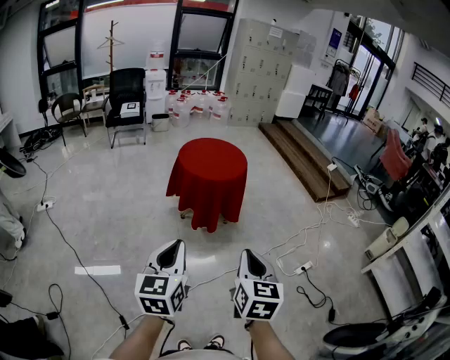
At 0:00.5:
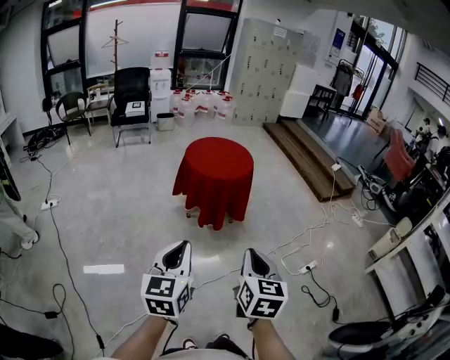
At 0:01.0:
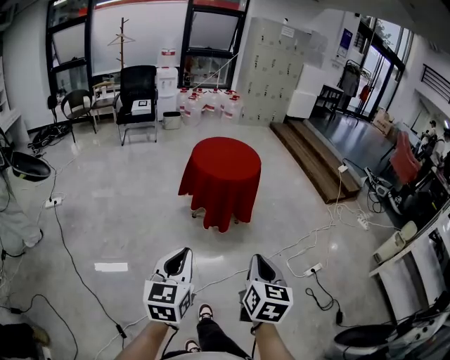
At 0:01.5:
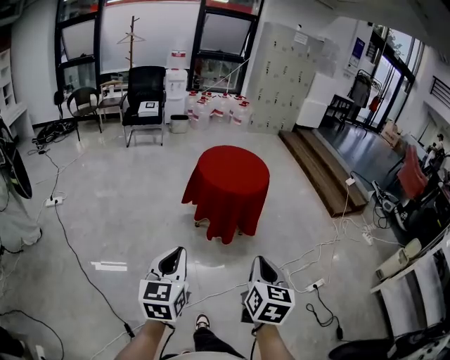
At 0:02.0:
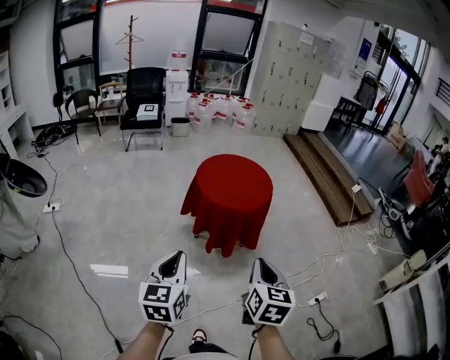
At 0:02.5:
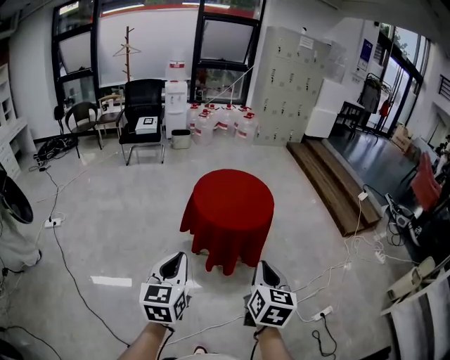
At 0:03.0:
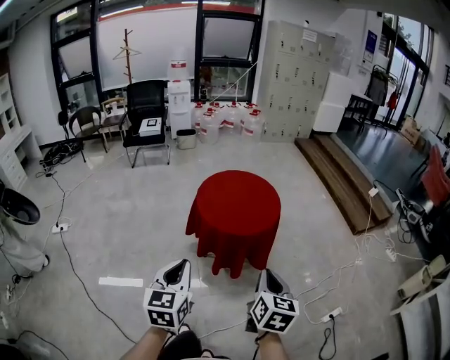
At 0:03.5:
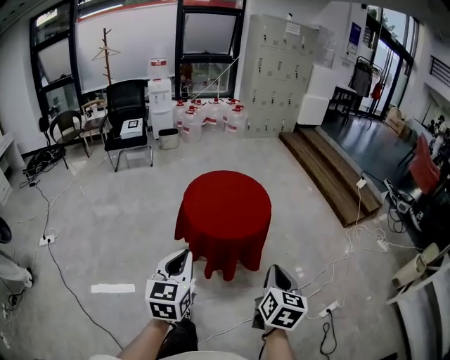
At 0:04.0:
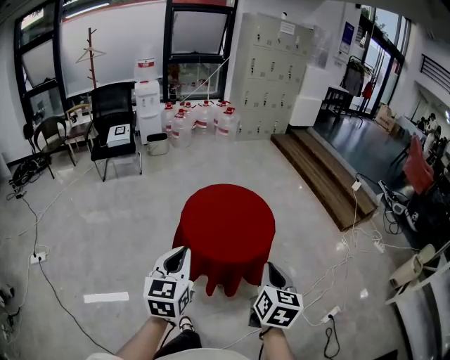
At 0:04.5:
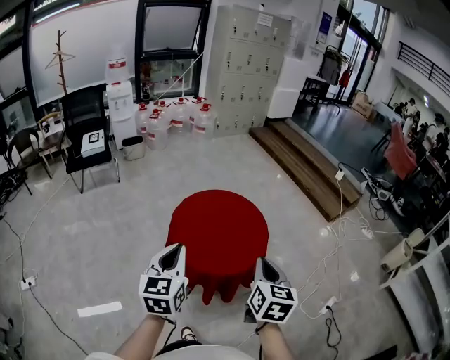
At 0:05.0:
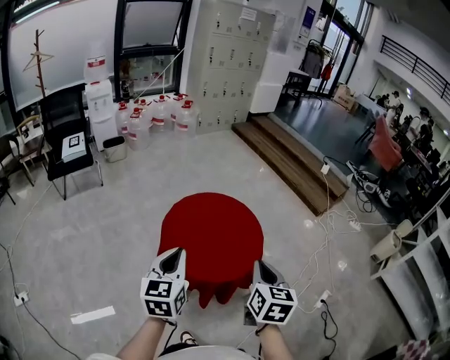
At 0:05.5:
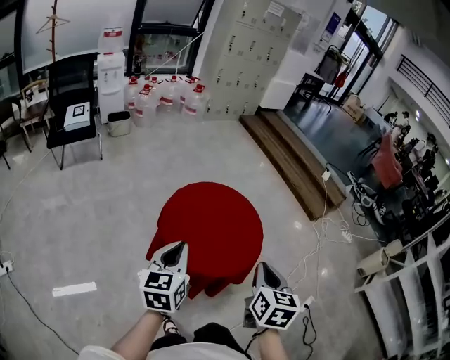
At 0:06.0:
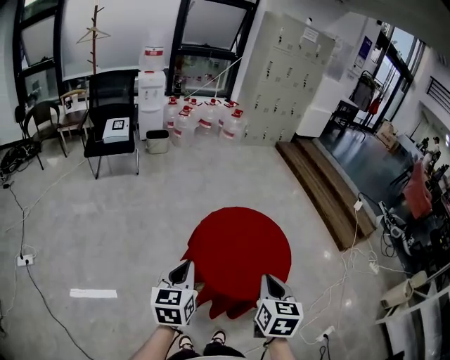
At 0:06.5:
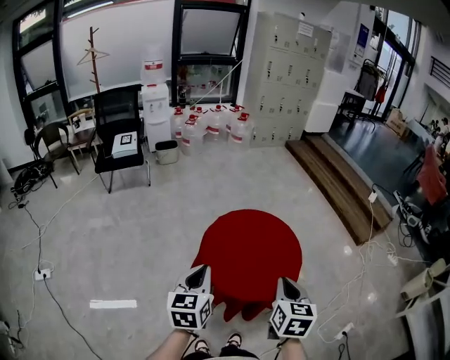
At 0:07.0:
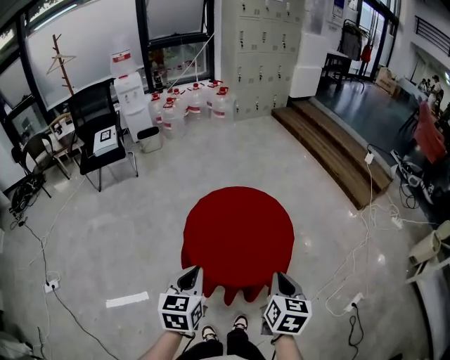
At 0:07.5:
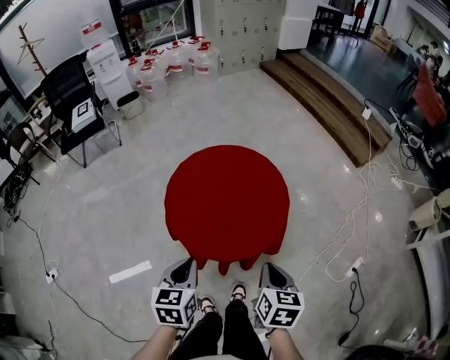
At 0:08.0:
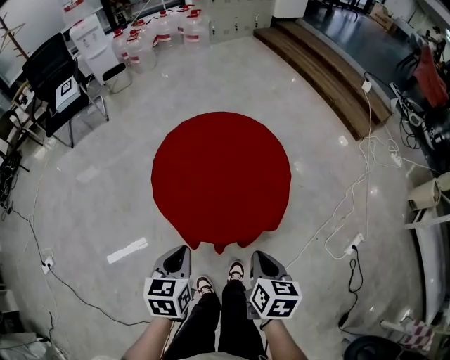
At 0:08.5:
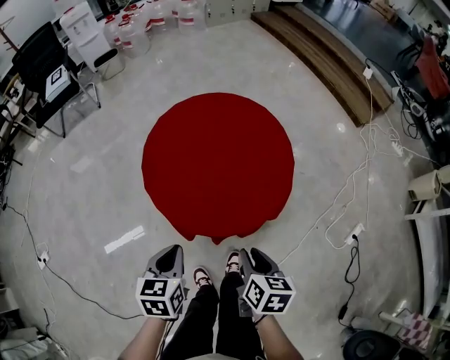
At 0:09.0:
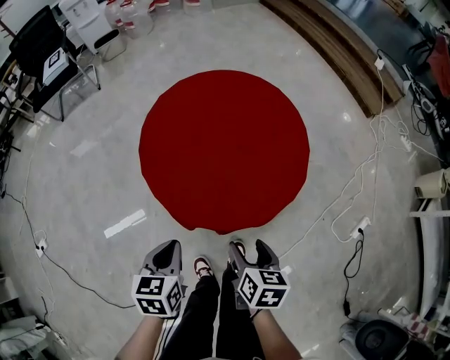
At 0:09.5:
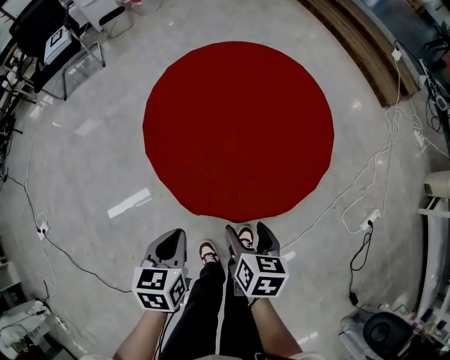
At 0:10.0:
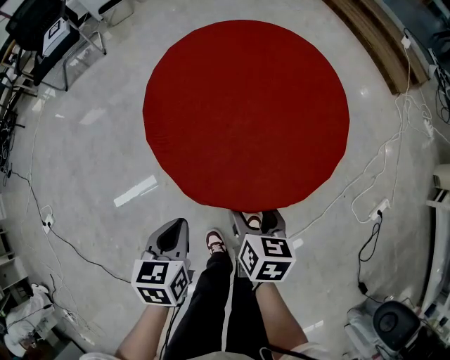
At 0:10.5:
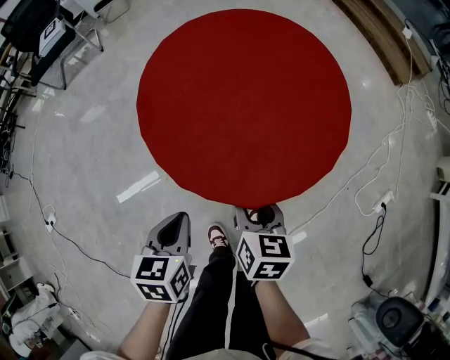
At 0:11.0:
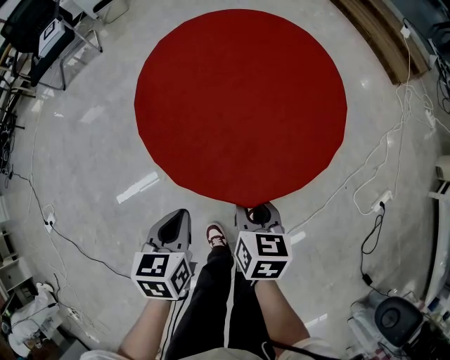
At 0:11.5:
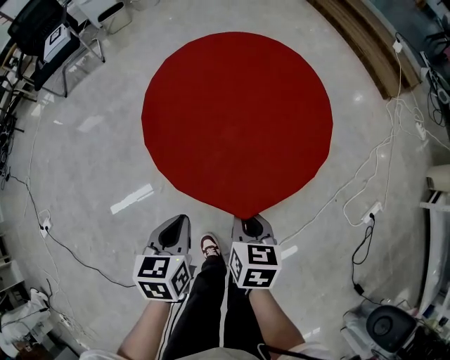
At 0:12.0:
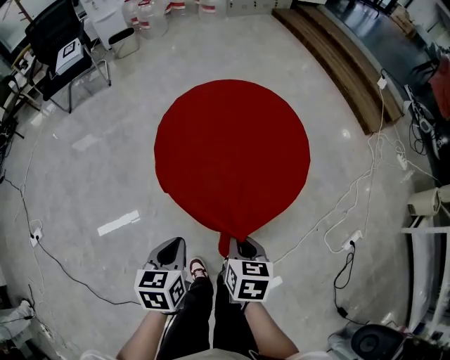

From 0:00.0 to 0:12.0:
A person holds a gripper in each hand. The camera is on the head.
From 0:00.0 to 0:02.0: The right gripper goes approximately 20 cm forward, while the left gripper travels forward and to the left by some 15 cm.
From 0:02.0 to 0:04.0: The grippers both shift forward by about 30 cm.
From 0:04.0 to 0:06.0: The left gripper heads to the left, forward and downward, covering roughly 20 cm. Meanwhile the right gripper travels to the left and forward by roughly 15 cm.
From 0:06.0 to 0:08.0: The two grippers go roughly 20 cm downward and to the right. The right gripper turns by some 30 degrees, while the left gripper turns by about 30 degrees.
From 0:08.0 to 0:10.0: The left gripper travels downward by about 10 cm; the right gripper heads downward and to the left, covering approximately 15 cm, and opens its fingers.
From 0:10.0 to 0:12.0: The two grippers go roughly 5 cm upward. The right gripper closes up.

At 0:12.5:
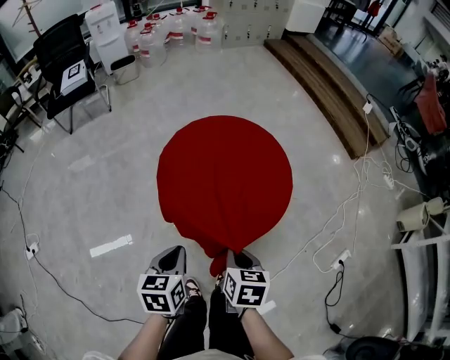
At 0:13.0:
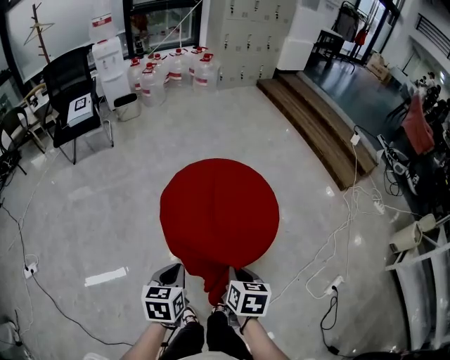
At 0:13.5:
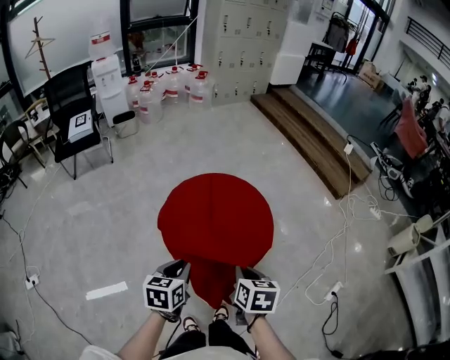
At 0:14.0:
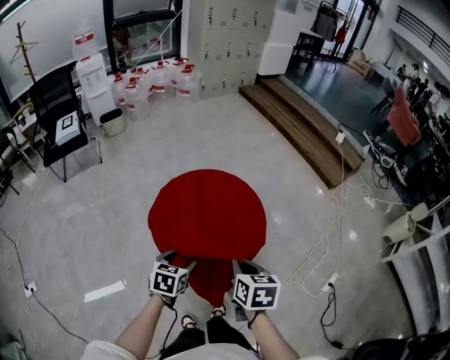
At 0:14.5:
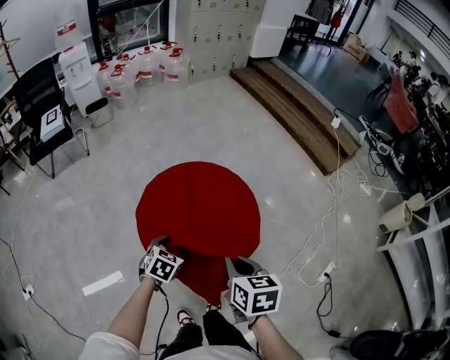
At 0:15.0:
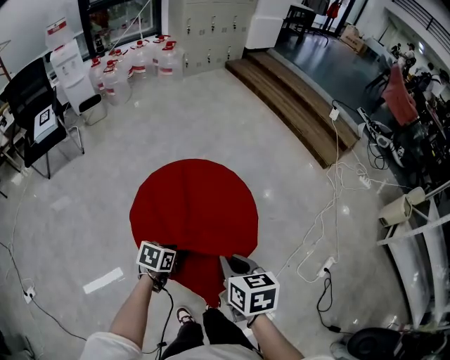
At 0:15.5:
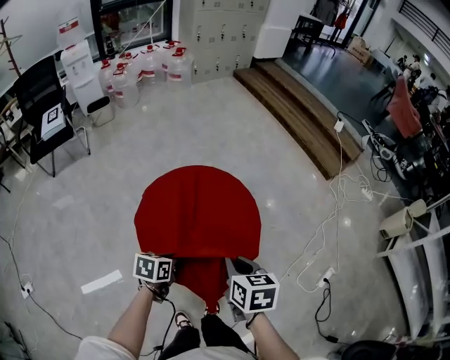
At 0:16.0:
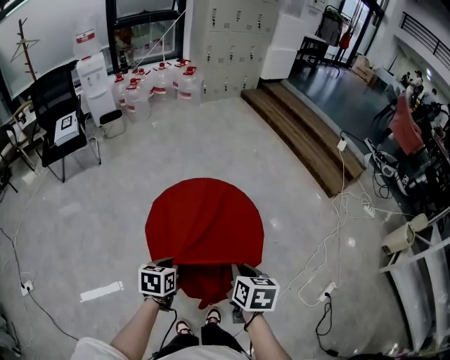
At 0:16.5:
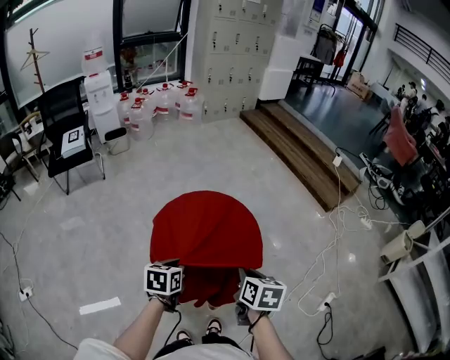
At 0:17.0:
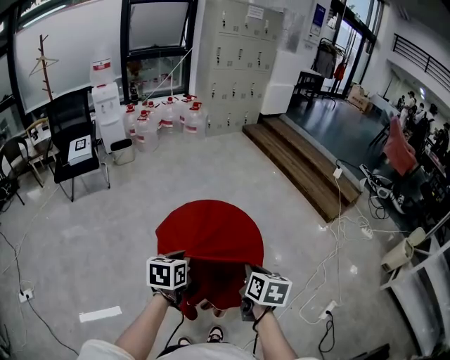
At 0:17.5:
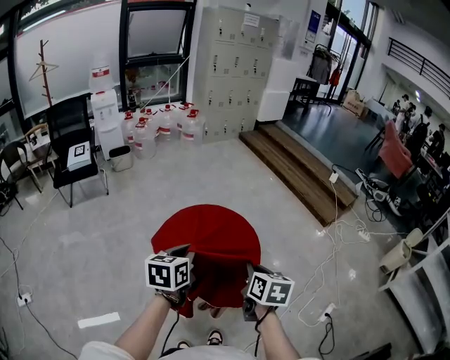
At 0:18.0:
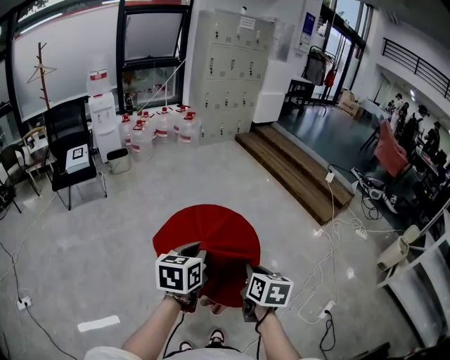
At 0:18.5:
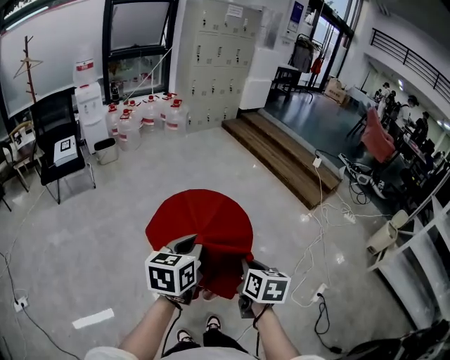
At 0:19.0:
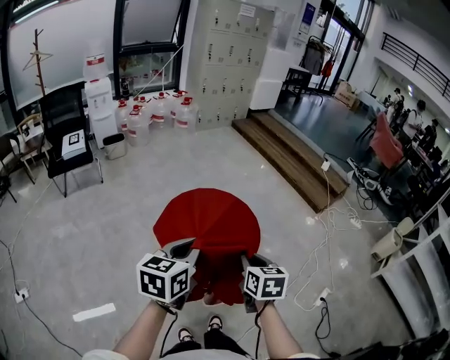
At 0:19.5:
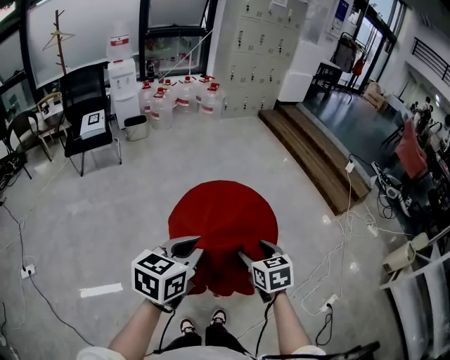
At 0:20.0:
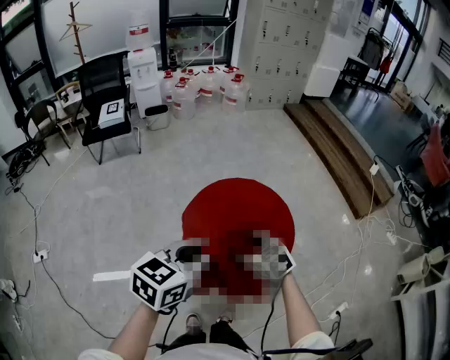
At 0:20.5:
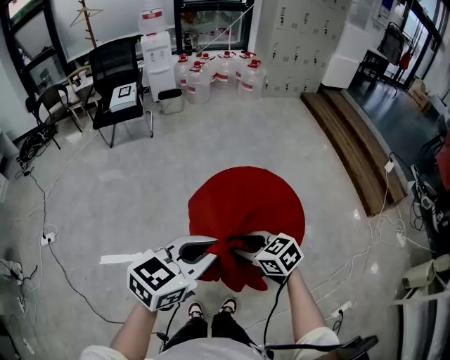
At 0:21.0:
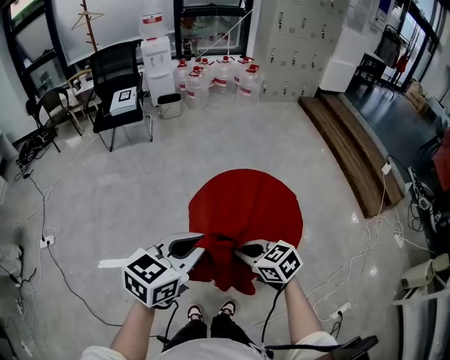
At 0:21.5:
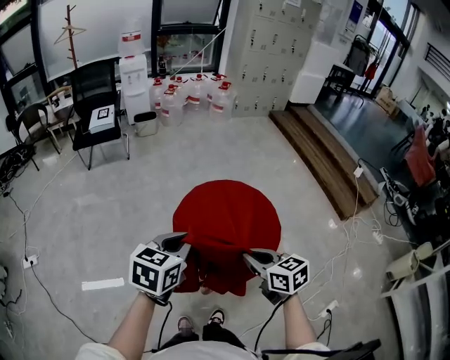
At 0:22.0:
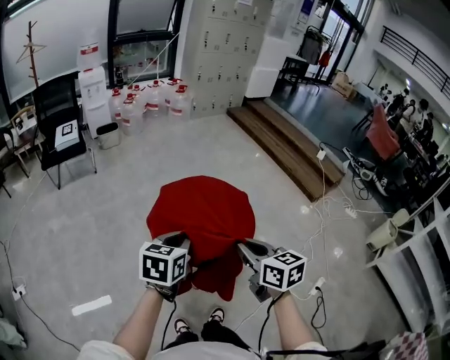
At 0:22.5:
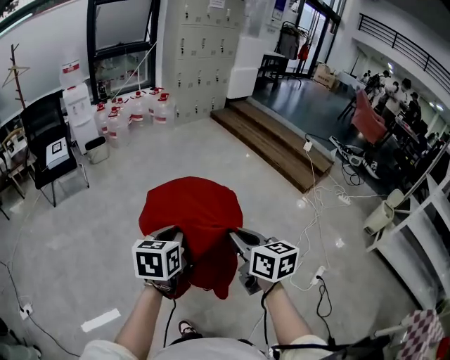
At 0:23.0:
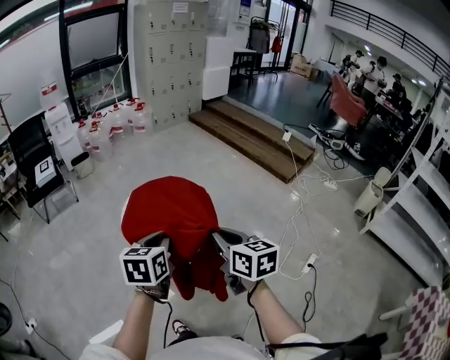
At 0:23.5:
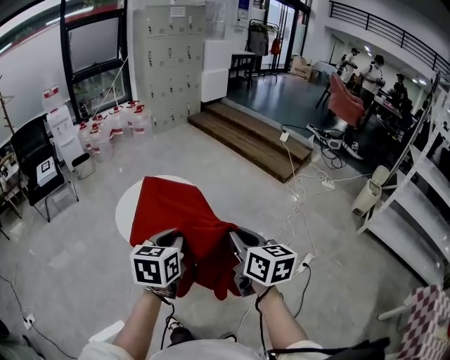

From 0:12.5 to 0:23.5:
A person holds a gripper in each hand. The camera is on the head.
From 0:12.5 to 0:14.5: The right gripper moves upward and forward, some 15 cm. The left gripper is displaced forward and downward by roughly 15 cm, swivels about 40 degrees, and opens up.
From 0:14.5 to 0:16.0: The left gripper goes approximately 5 cm upward, rotates approximately 30 degrees, and closes its fingers.
From 0:16.0 to 0:18.0: The right gripper moves upward, approximately 10 cm; the left gripper goes about 20 cm upward, and swivels some 20 degrees.
From 0:18.0 to 0:20.0: The left gripper shifts by roughly 5 cm. The right gripper moves to the left and downward, about 15 cm, changes its angle by about 60 degrees, and opens up.
From 0:20.0 to 0:21.5: The left gripper changes place by some 5 cm. Meanwhile the right gripper is displaced upward and backward by about 10 cm, turns by approximately 20 degrees, and closes up.
From 0:21.5 to 0:23.5: The right gripper is displaced to the right, backward and upward by some 30 cm, and swivels some 40 degrees; the left gripper heads to the right and backward, covering some 25 cm.

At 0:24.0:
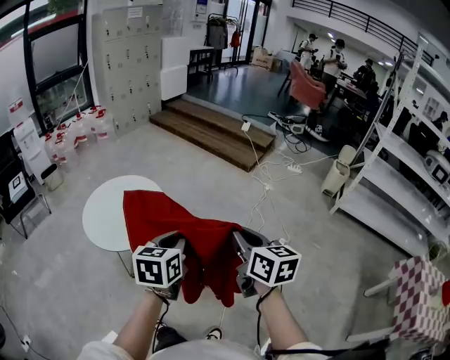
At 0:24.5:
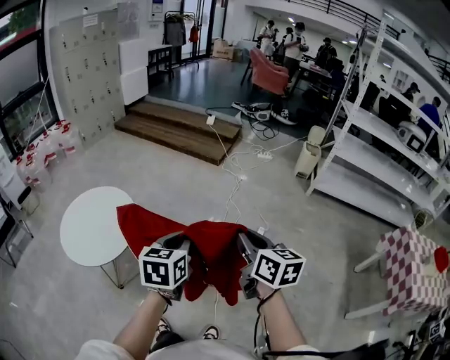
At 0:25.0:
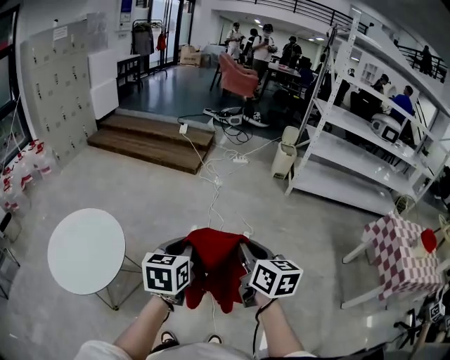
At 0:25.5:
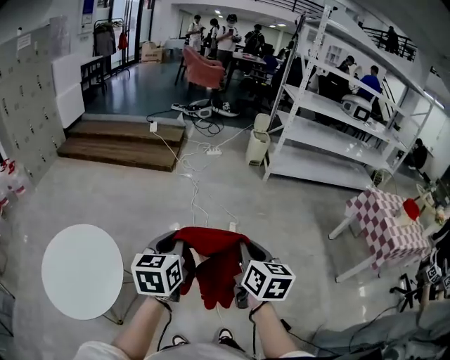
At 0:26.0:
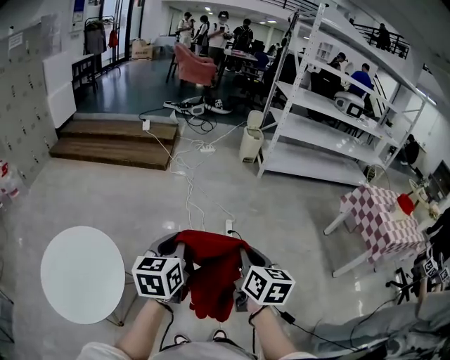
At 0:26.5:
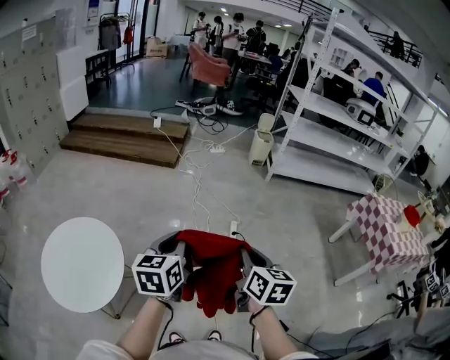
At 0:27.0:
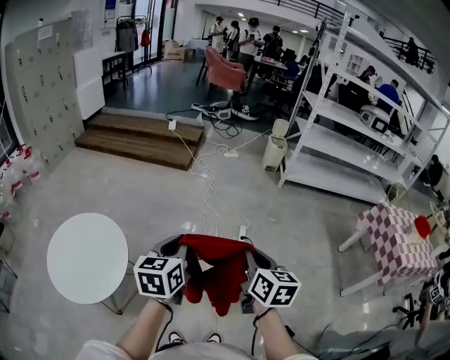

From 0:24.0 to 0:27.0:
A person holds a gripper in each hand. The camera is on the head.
From 0:24.0 to 0:25.5: The right gripper shifts by roughly 10 cm, and swivels roughly 50 degrees; the left gripper changes place by some 10 cm, and swivels about 30 degrees.
From 0:25.5 to 0:27.0: The grippers stay close to where they were, moving slightly.
